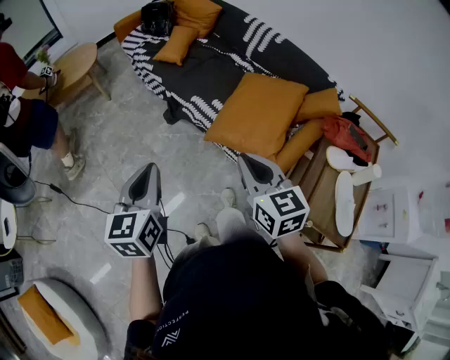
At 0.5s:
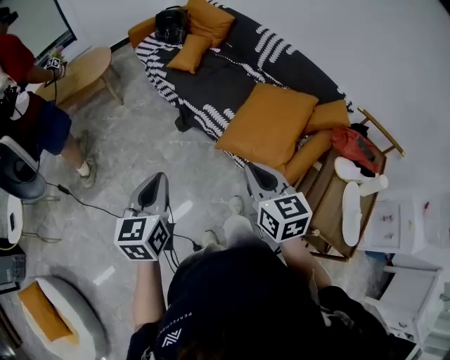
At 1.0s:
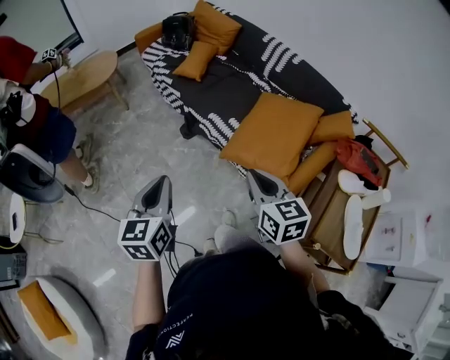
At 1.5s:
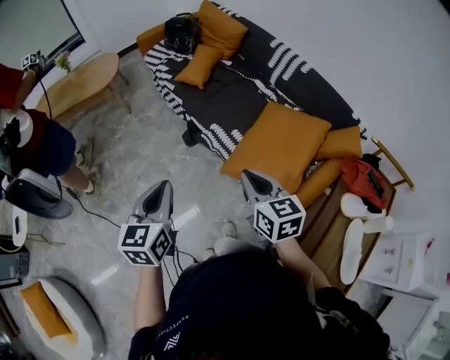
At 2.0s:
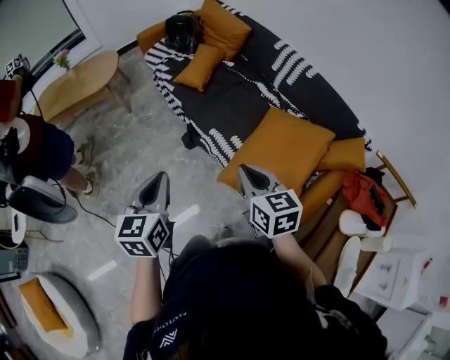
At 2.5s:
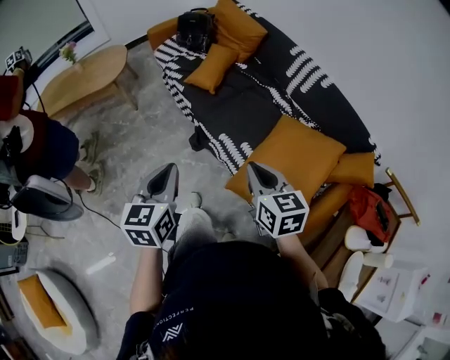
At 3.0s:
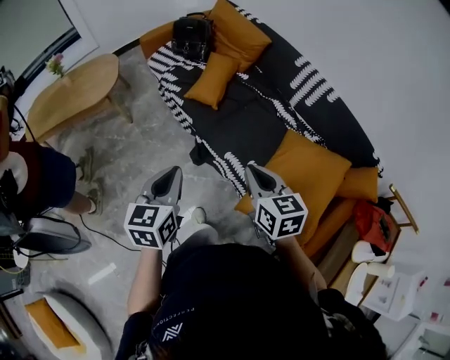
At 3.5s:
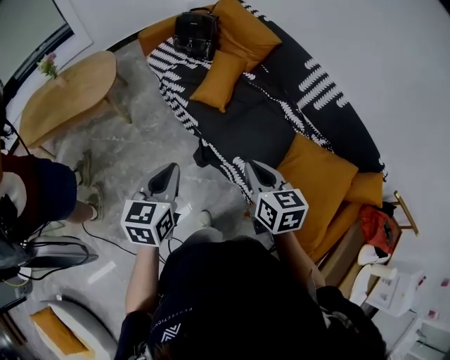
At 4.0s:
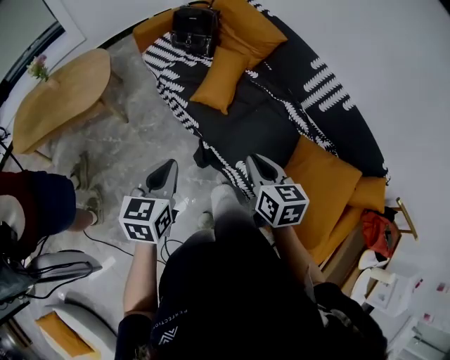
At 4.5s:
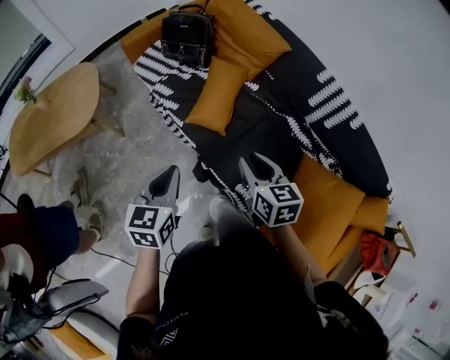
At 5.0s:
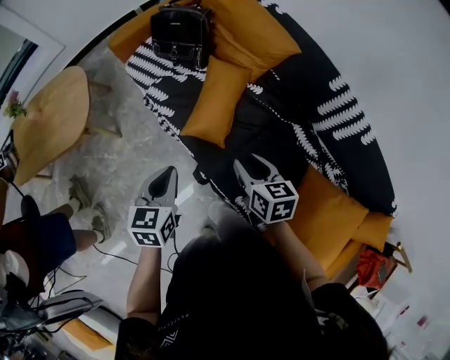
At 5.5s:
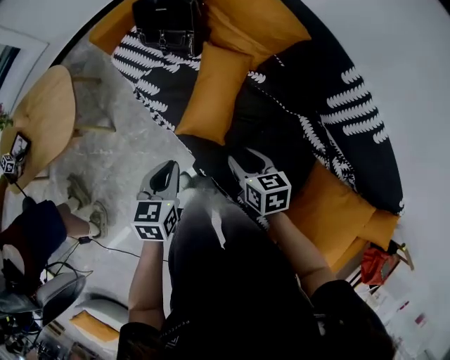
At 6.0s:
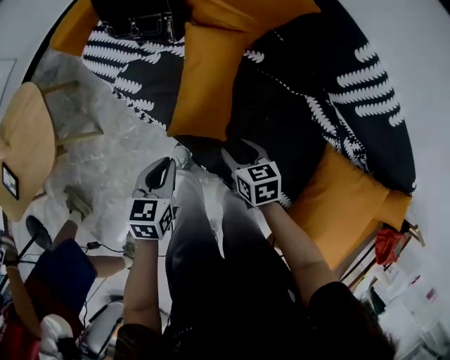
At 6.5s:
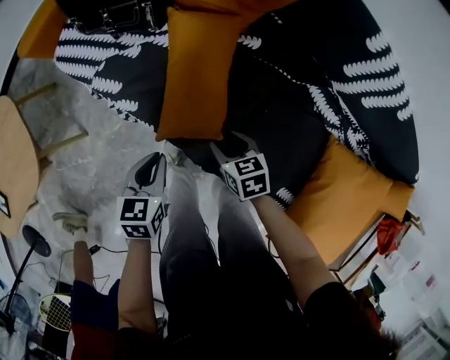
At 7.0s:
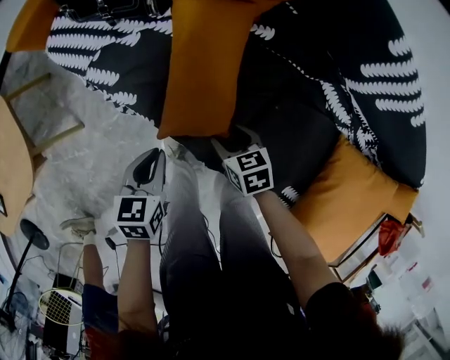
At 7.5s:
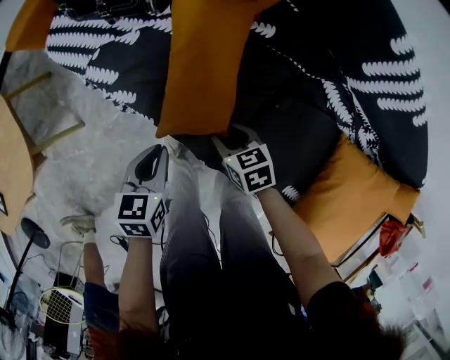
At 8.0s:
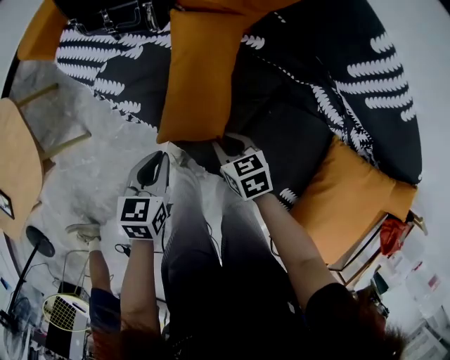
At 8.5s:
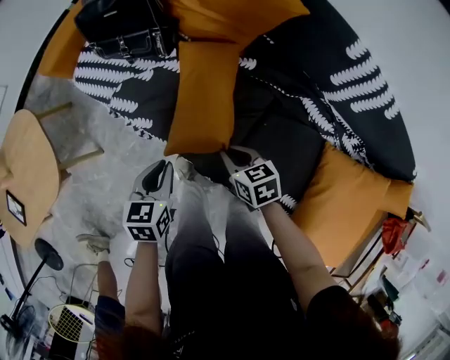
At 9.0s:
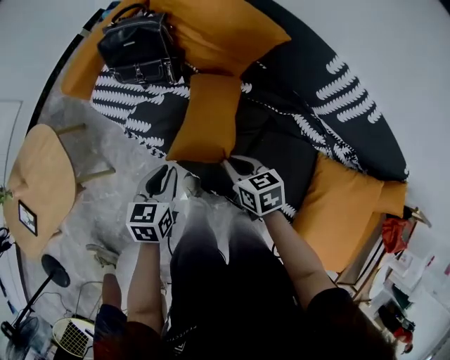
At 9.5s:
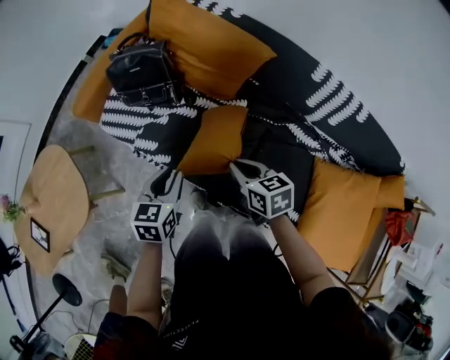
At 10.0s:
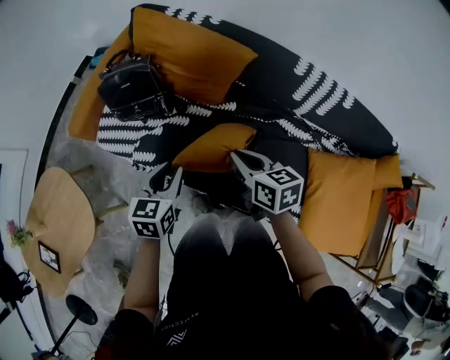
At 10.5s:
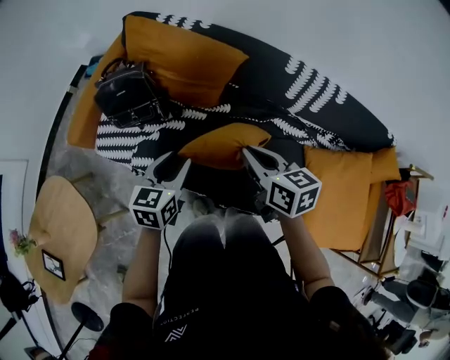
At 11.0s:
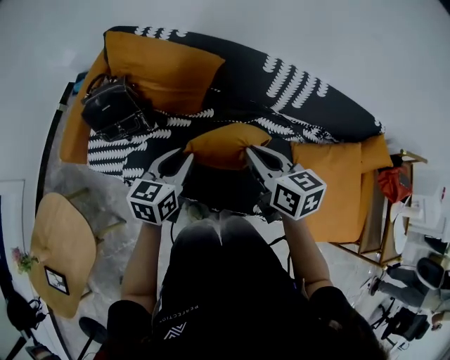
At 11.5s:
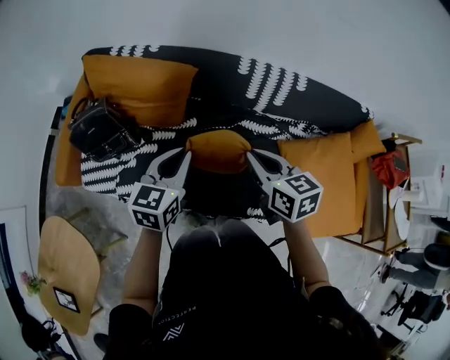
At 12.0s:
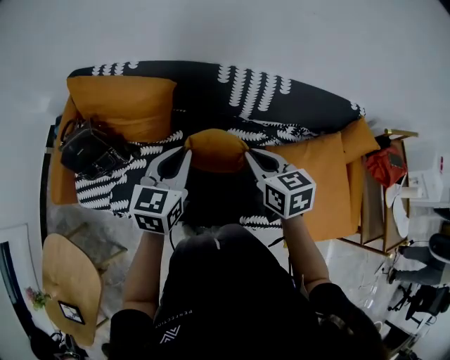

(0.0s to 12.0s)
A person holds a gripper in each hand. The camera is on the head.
0.0s - 2.0s: The grippers both shift forward by roughly 15 cm.
2.0s - 4.0s: The grippers both shift forward and to the left by about 35 cm.
4.0s - 6.0s: The grippers both shift forward and downward by approximately 40 cm. The right gripper turns by some 20 degrees, and opens. Meanwhile the left gripper turns by approximately 20 degrees.
6.0s - 8.0s: Both grippers move downward, some 5 cm. The right gripper closes up.
8.0s - 10.0s: The left gripper is displaced upward and forward by roughly 20 cm, and swivels roughly 20 degrees, while the right gripper shifts approximately 30 cm upward, and changes its angle by about 30 degrees.
10.0s - 12.0s: The right gripper travels to the right by some 25 cm, and changes its angle by approximately 20 degrees, while the left gripper travels to the right, upward and forward by some 30 cm, changes its angle by approximately 30 degrees, and closes up.

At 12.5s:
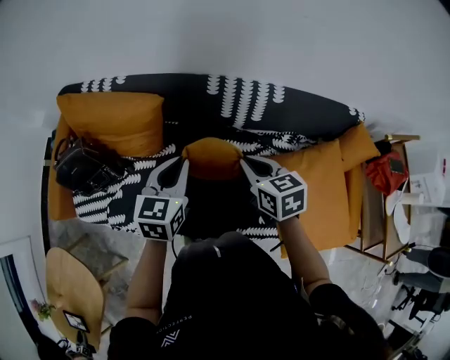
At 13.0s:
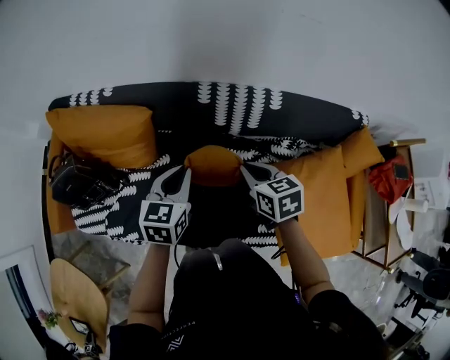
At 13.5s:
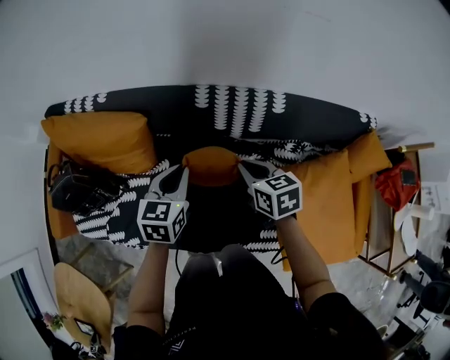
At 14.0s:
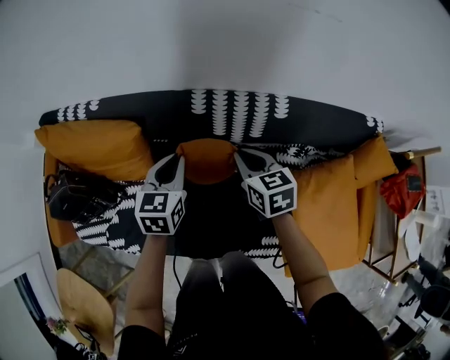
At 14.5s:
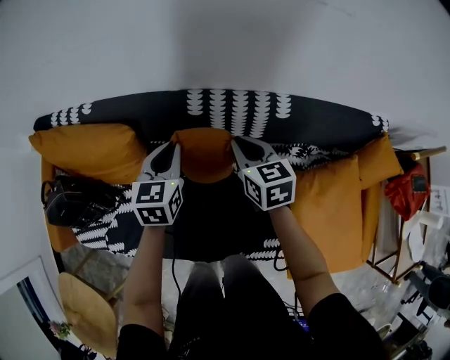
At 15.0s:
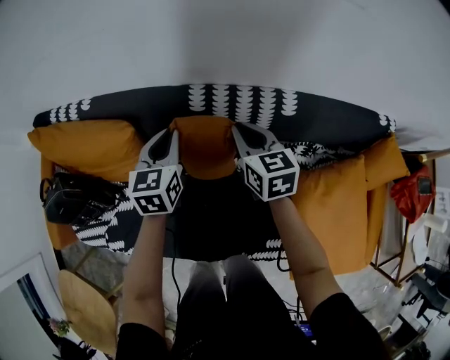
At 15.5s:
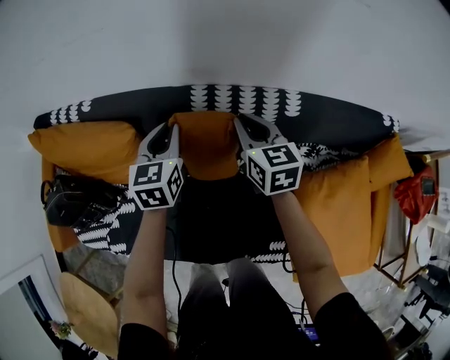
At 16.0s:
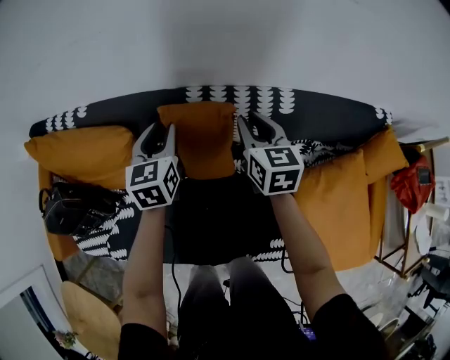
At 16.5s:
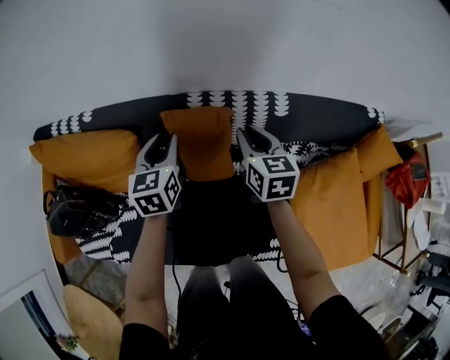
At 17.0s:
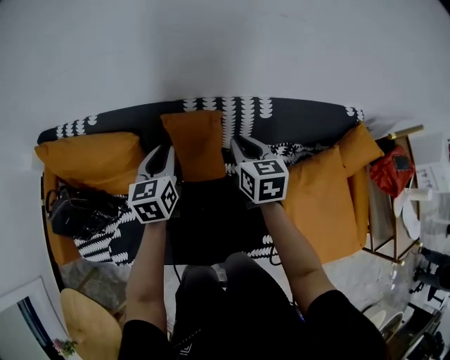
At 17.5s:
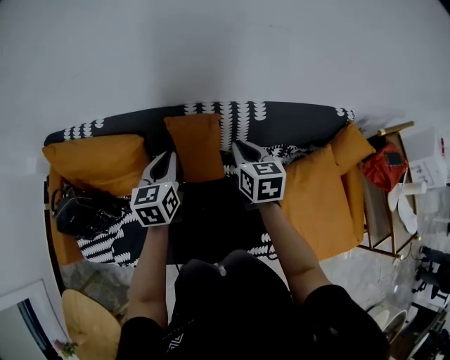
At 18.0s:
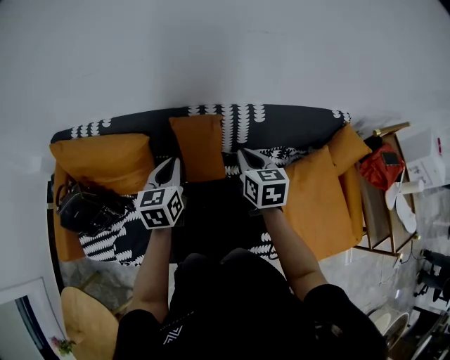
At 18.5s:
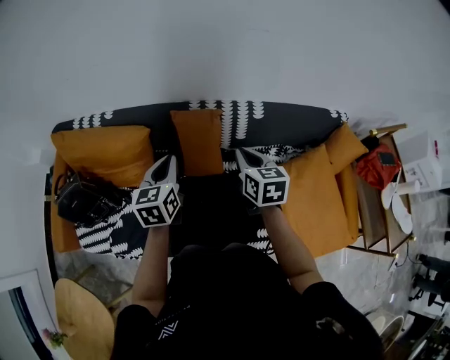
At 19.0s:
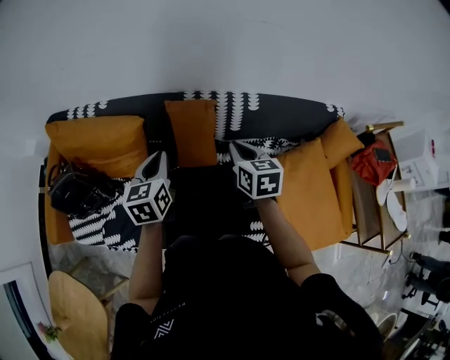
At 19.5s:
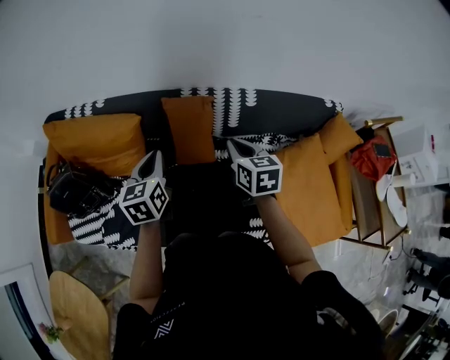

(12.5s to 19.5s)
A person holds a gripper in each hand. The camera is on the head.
12.5s - 14.5s: Both grippers travel together forward and downward, approximately 20 cm.
14.5s - 16.0s: The right gripper changes place by about 5 cm. Meanwhile the left gripper shifts roughly 5 cm forward, and opens up.
16.0s - 17.5s: Both grippers travel together backward and upward, some 15 cm. The left gripper closes up.
17.5s - 19.5s: The two grippers go some 10 cm backward.

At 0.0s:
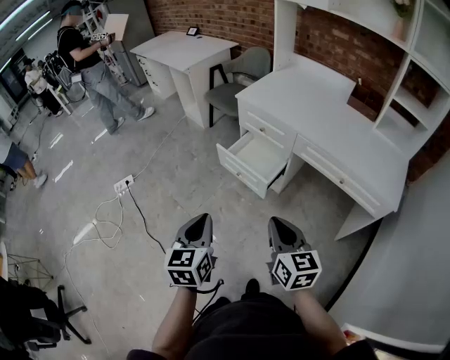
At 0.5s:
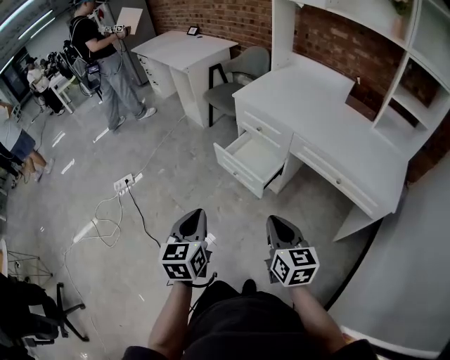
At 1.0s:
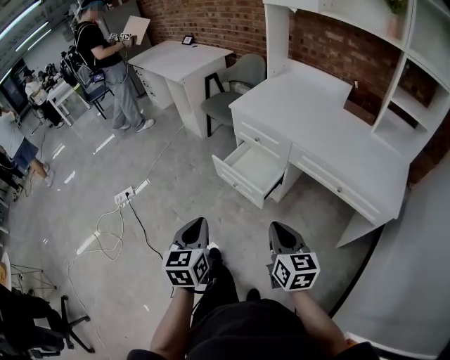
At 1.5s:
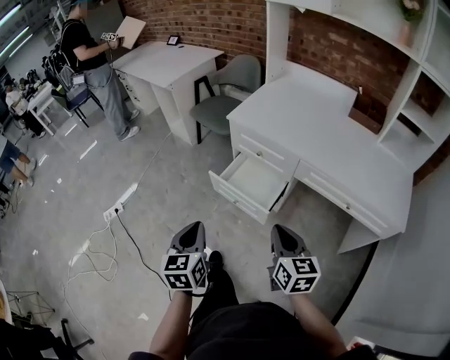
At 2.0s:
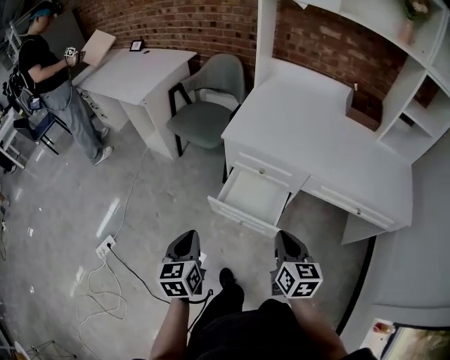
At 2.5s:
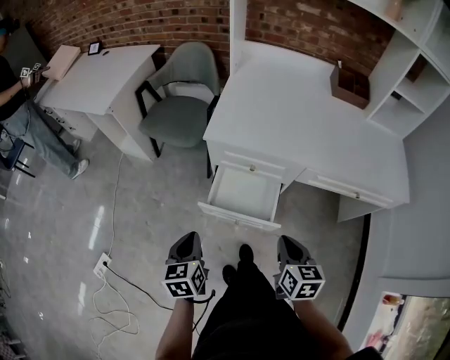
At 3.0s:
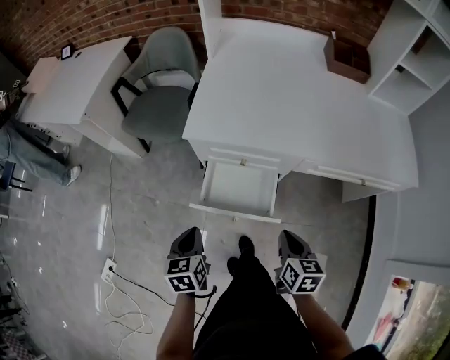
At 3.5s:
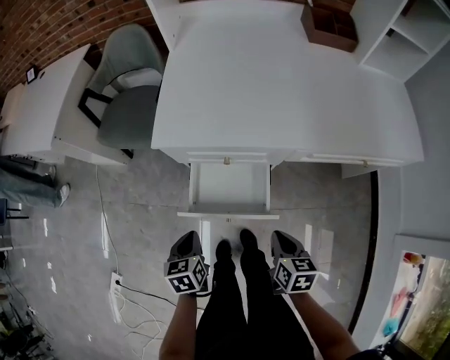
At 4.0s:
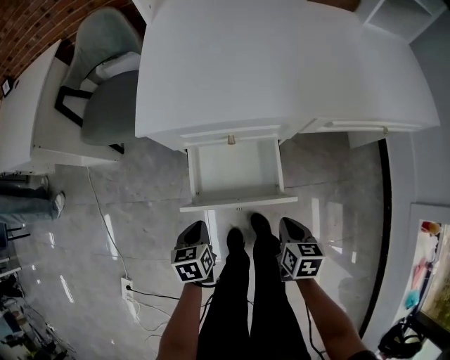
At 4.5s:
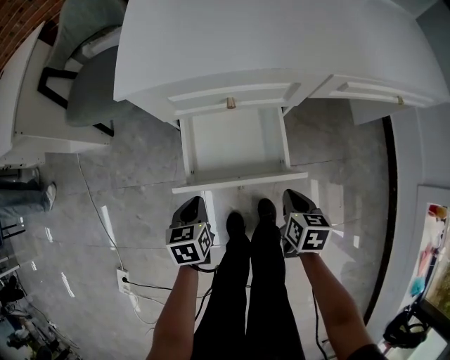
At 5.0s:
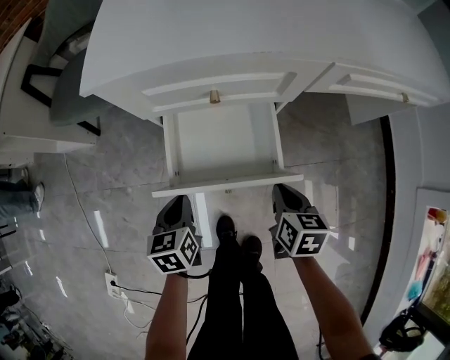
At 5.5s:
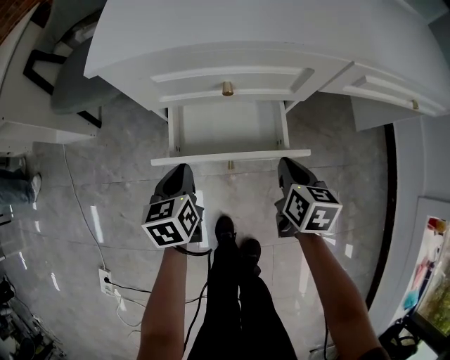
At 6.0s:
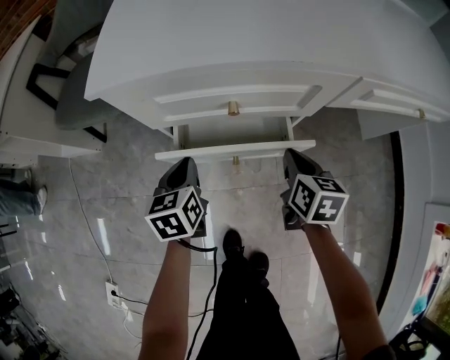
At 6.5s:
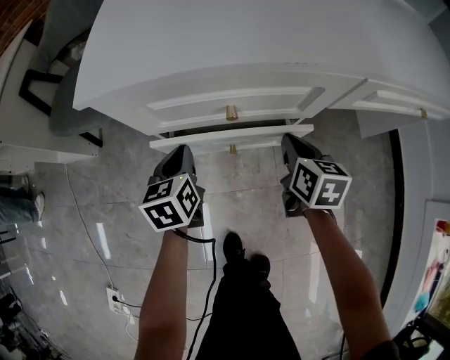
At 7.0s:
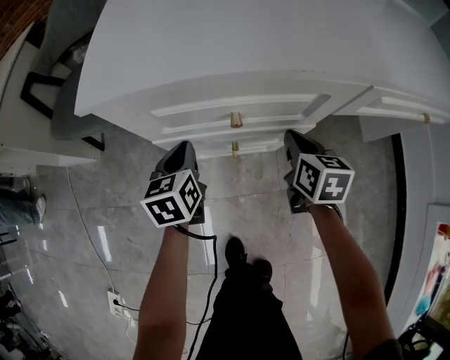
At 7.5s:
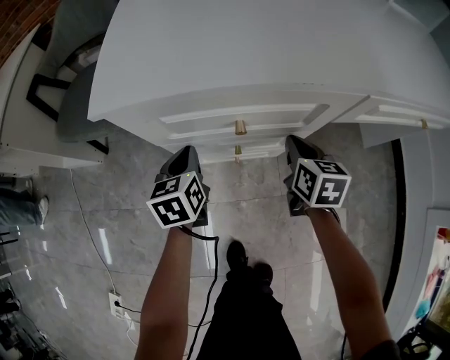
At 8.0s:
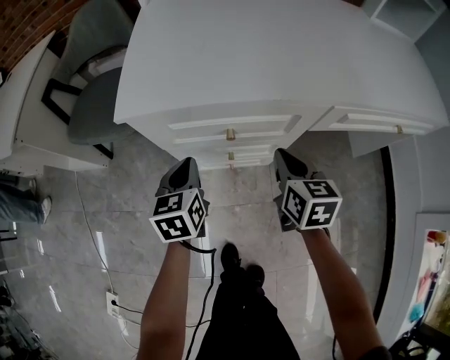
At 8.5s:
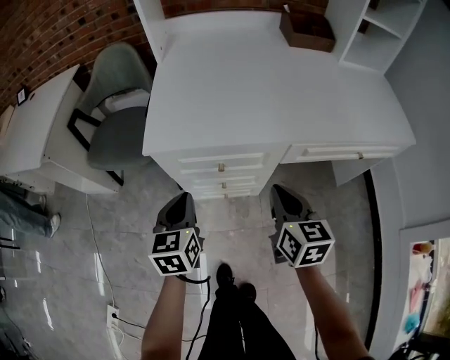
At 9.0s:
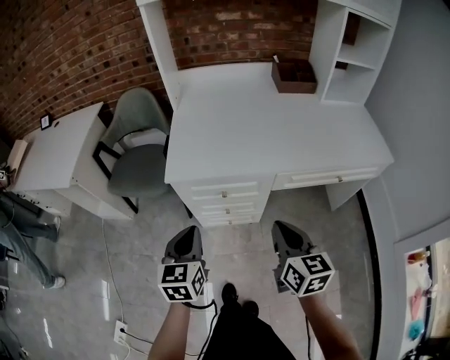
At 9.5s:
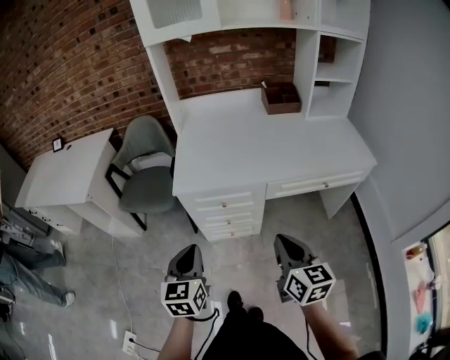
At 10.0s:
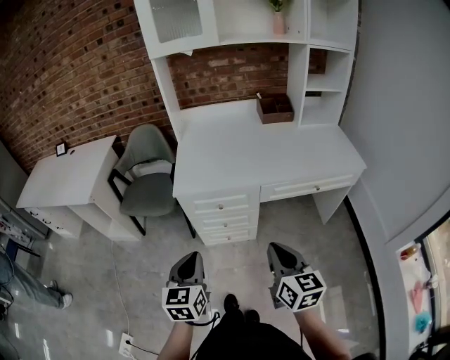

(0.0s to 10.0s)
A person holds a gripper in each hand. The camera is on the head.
0.0s - 2.0s: Both grippers travel together forward, some 30 cm. The right gripper changes its angle by approximately 30 degrees.
2.0s - 4.0s: The grippers both shift downward by about 30 cm. The right gripper rotates about 40 degrees; the left gripper rotates approximately 40 degrees.
4.0s - 6.0s: Both grippers travel together forward and downward, about 20 cm.
6.0s - 8.0s: Both grippers move upward, approximately 10 cm.
8.0s - 10.0s: The two grippers go approximately 50 cm upward and backward.
